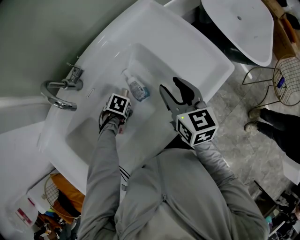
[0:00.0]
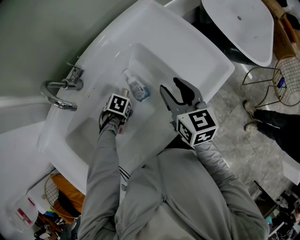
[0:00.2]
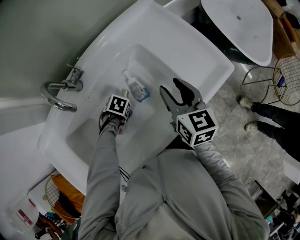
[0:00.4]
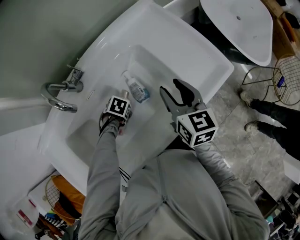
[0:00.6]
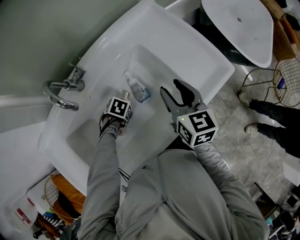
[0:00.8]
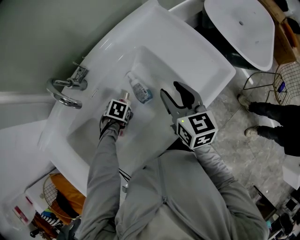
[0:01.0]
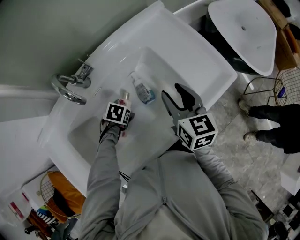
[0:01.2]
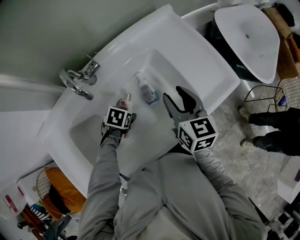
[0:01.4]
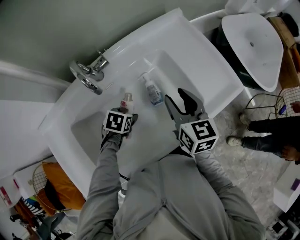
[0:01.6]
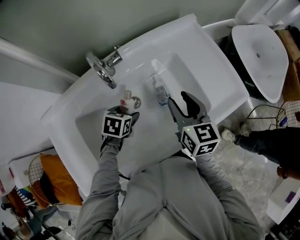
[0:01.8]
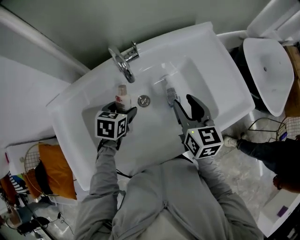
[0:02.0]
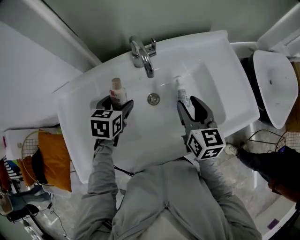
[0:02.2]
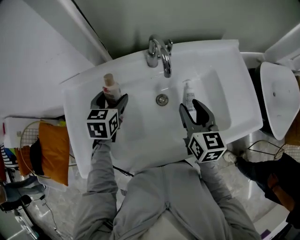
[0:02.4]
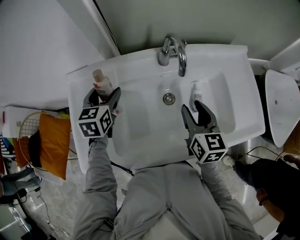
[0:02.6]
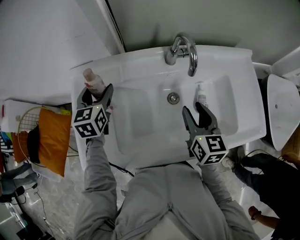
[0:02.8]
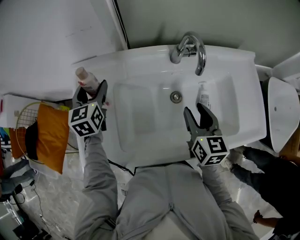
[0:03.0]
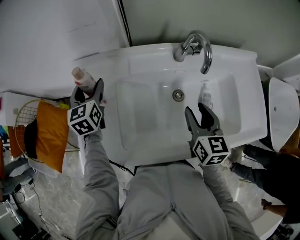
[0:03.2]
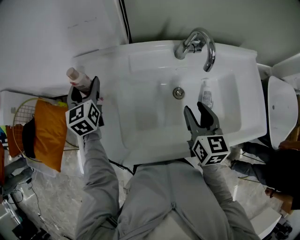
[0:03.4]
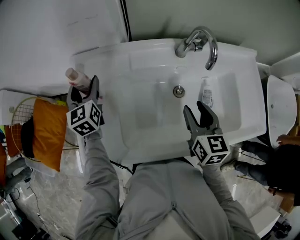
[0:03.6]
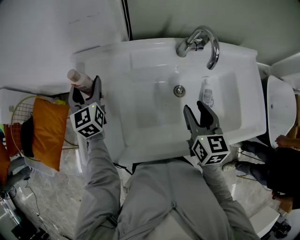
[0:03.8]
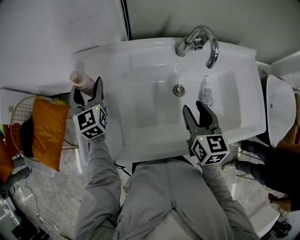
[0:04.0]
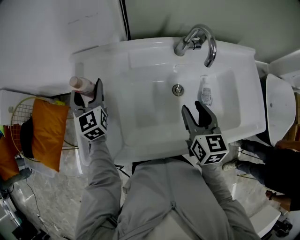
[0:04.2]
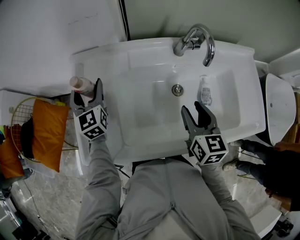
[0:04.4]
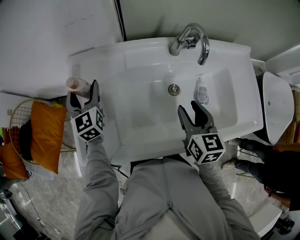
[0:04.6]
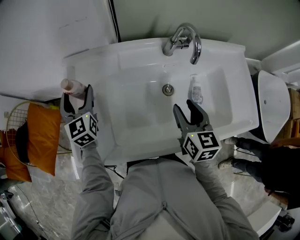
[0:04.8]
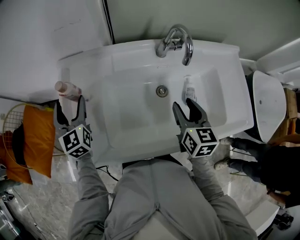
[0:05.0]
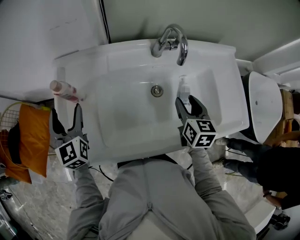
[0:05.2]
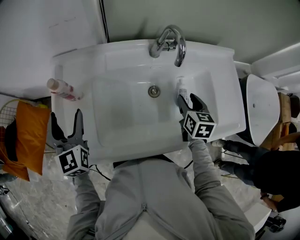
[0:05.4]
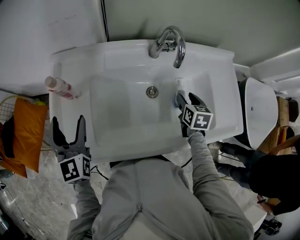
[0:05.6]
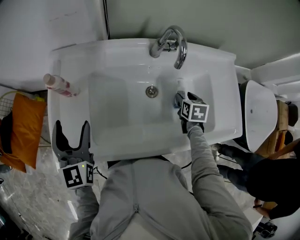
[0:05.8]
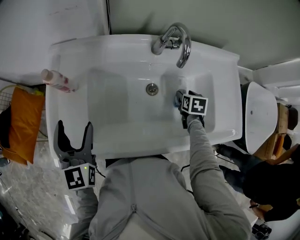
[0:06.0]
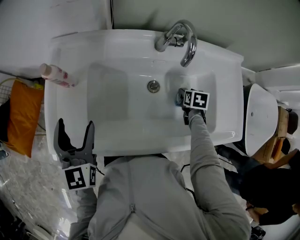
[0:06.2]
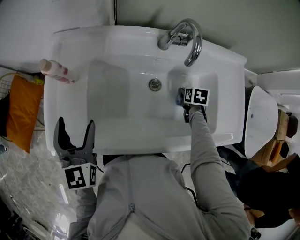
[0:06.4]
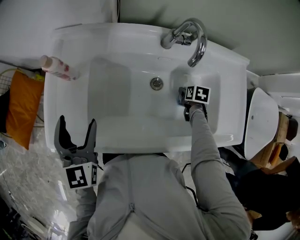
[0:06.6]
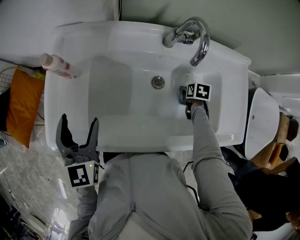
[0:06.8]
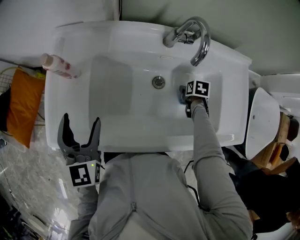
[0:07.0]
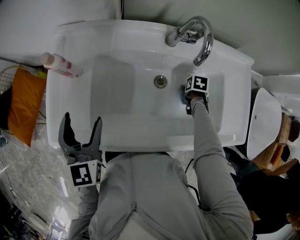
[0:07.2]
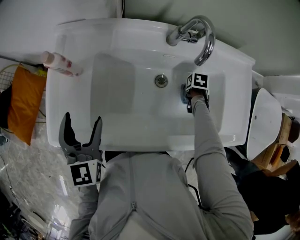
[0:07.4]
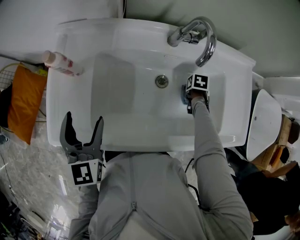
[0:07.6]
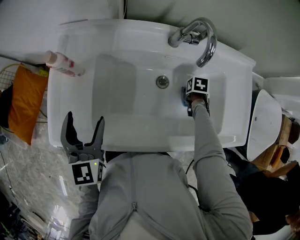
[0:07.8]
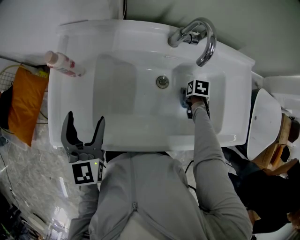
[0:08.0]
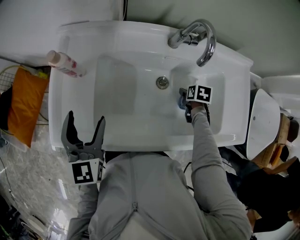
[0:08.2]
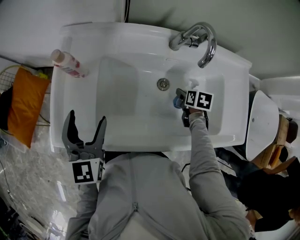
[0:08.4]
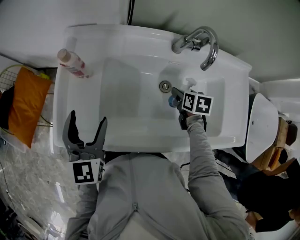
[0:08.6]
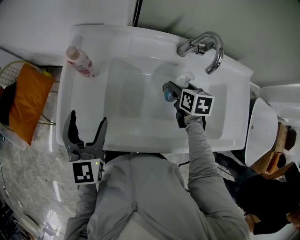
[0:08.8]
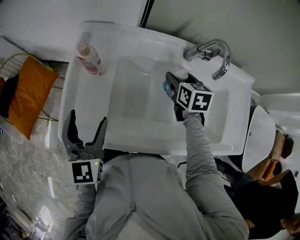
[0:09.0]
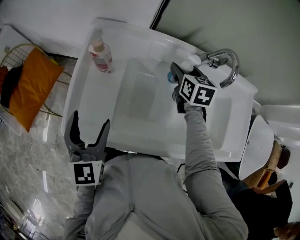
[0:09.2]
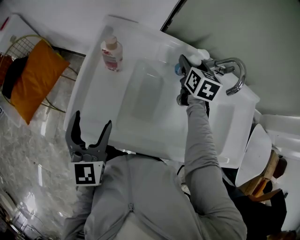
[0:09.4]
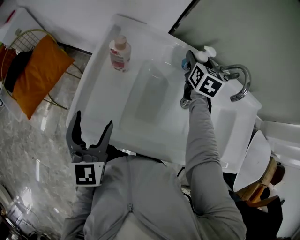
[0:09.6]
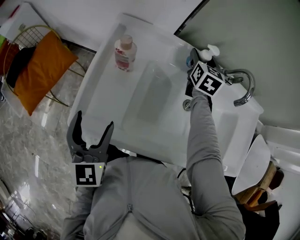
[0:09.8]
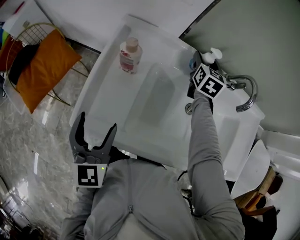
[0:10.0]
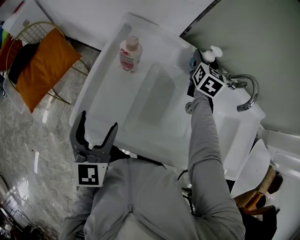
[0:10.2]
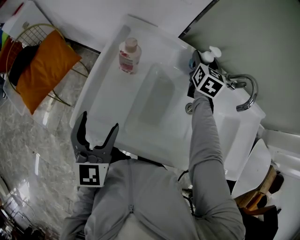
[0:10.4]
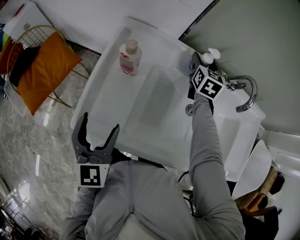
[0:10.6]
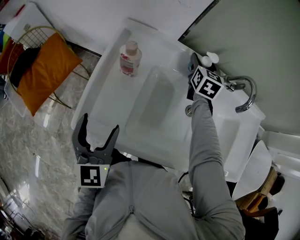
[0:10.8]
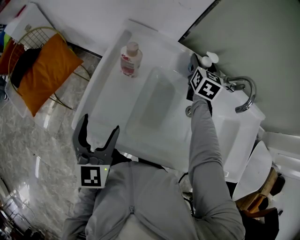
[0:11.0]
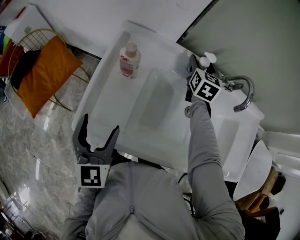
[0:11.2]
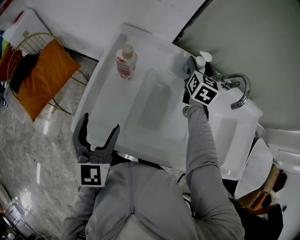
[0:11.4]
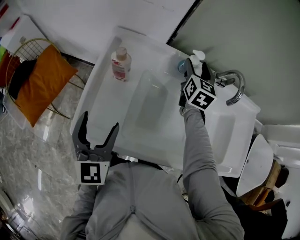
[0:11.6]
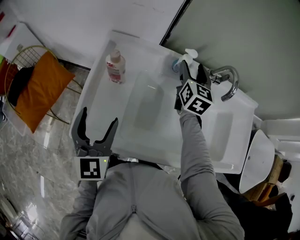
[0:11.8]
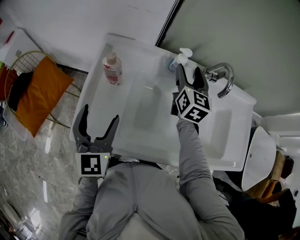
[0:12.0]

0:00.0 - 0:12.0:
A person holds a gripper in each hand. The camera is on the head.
0:00.0 - 0:01.6: The left gripper heads upward, covering about 10 cm, and rotates about 20 degrees, while the right gripper shifts by roughly 5 cm.
0:01.6 - 0:03.0: The right gripper shifts by about 20 cm, and turns by some 20 degrees; the left gripper changes place by approximately 40 cm, and tips its fingers upward by some 50 degrees.
0:03.0 - 0:04.4: The left gripper moves about 5 cm.
0:04.4 - 0:06.0: The left gripper goes about 20 cm backward and to the right, while the right gripper is displaced to the right and downward by about 25 cm, and angles its fingers downward, by some 30 degrees.
0:06.0 - 0:07.6: The right gripper travels downward by some 10 cm, and rotates about 20 degrees.
0:07.6 - 0:09.0: The right gripper shifts by roughly 30 cm, and tilts its fingers some 40 degrees upward. The left gripper ends up some 5 cm from where it was.
0:09.0 - 0:10.4: The right gripper goes roughly 15 cm forward, and rotates roughly 20 degrees.
0:10.4 - 0:12.0: The left gripper changes place by approximately 5 cm. The right gripper heads backward and upward, covering about 10 cm.

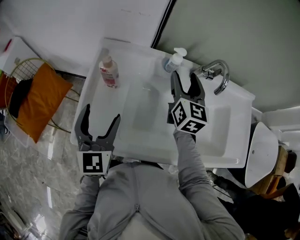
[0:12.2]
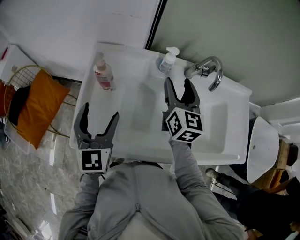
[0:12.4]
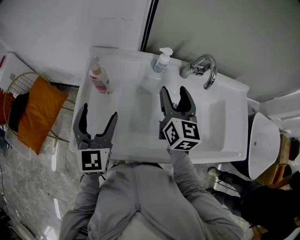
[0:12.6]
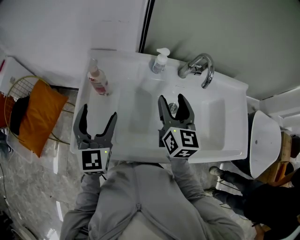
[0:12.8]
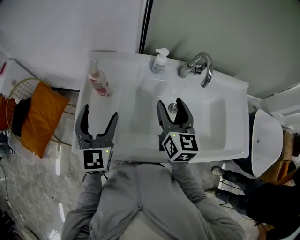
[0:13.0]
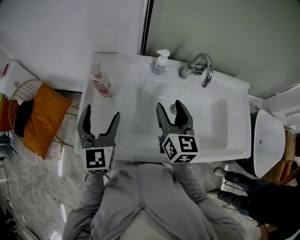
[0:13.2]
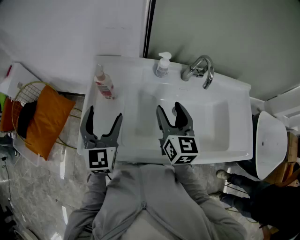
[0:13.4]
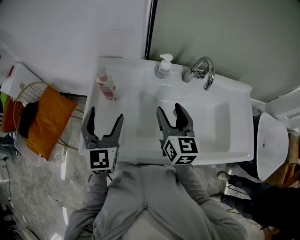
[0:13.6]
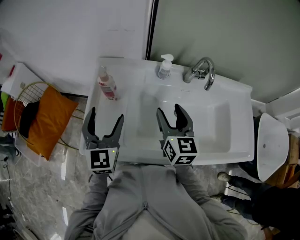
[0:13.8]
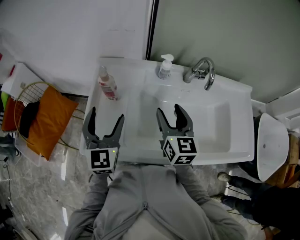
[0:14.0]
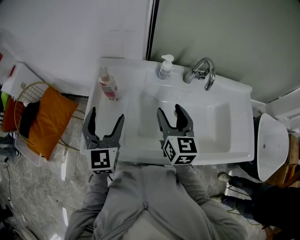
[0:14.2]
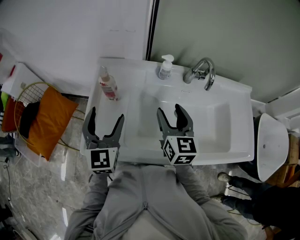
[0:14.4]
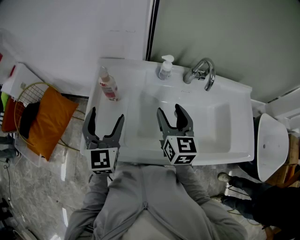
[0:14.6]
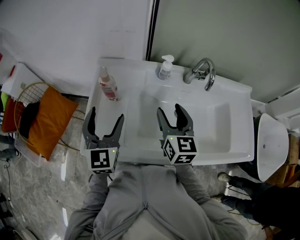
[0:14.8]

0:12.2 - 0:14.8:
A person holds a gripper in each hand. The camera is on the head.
0:12.2 - 0:13.4: The right gripper is displaced backward by approximately 10 cm.
0:13.4 - 0:14.8: Both grippers stay put.

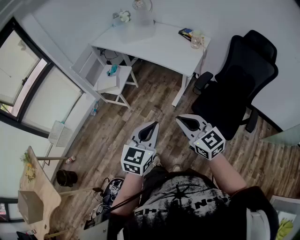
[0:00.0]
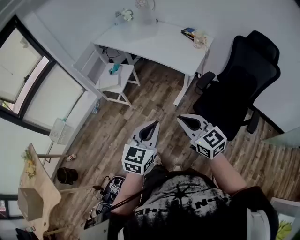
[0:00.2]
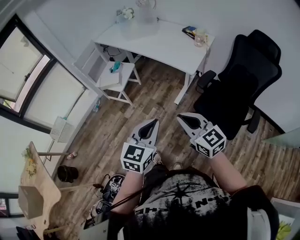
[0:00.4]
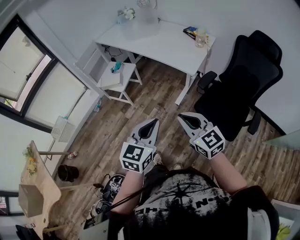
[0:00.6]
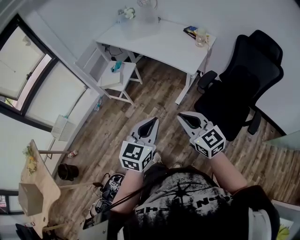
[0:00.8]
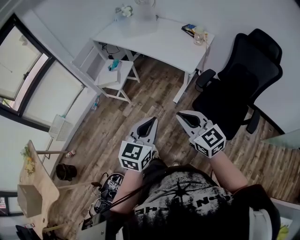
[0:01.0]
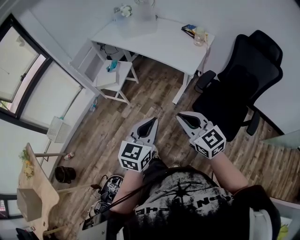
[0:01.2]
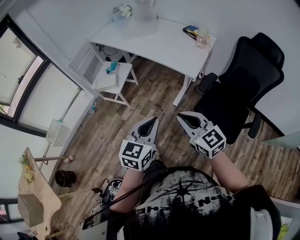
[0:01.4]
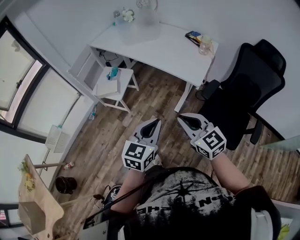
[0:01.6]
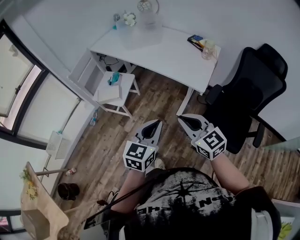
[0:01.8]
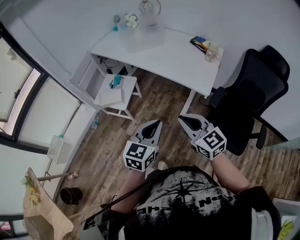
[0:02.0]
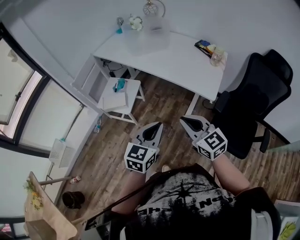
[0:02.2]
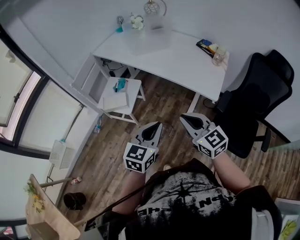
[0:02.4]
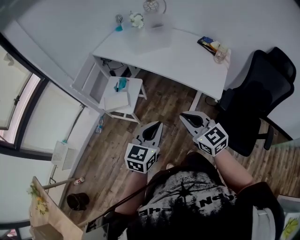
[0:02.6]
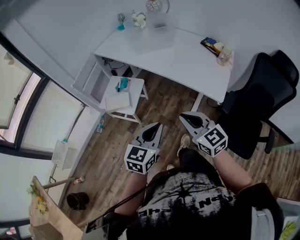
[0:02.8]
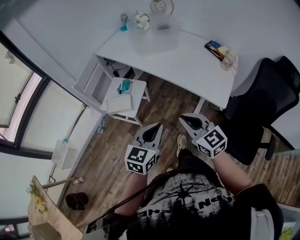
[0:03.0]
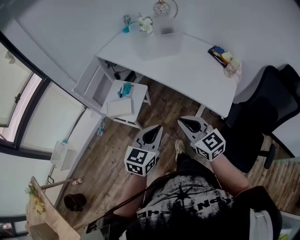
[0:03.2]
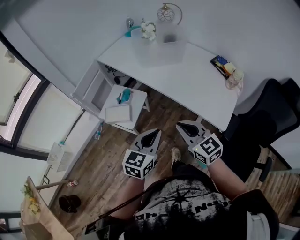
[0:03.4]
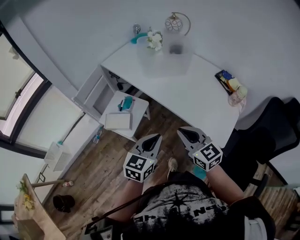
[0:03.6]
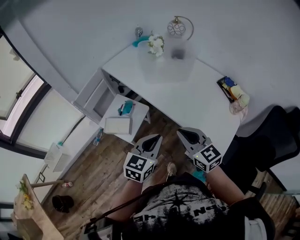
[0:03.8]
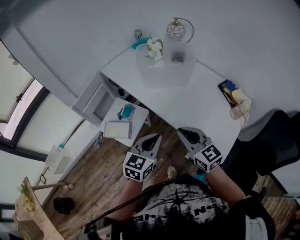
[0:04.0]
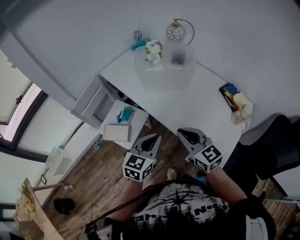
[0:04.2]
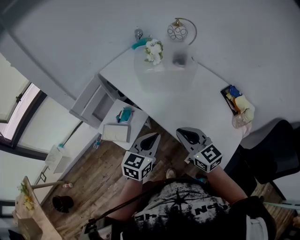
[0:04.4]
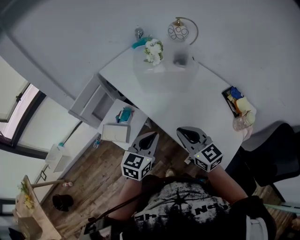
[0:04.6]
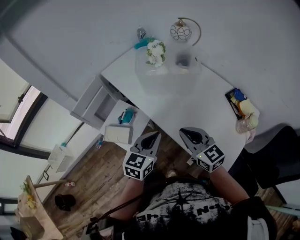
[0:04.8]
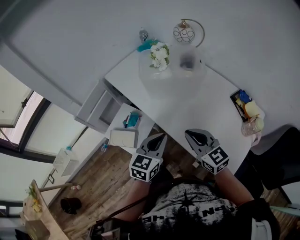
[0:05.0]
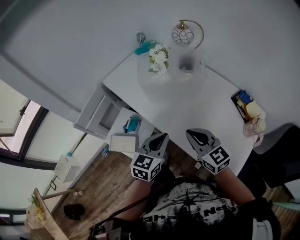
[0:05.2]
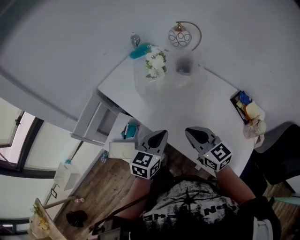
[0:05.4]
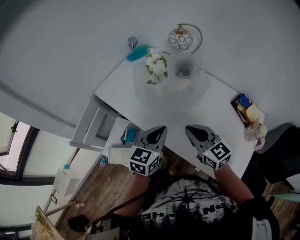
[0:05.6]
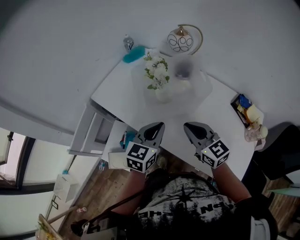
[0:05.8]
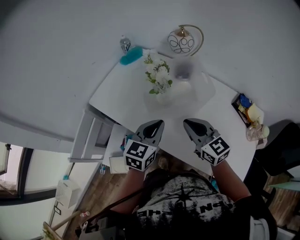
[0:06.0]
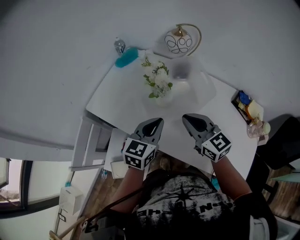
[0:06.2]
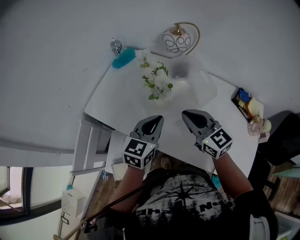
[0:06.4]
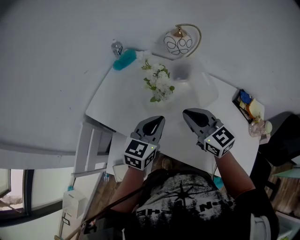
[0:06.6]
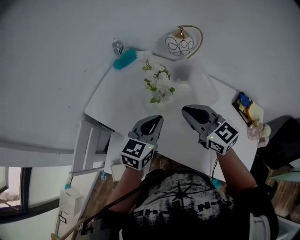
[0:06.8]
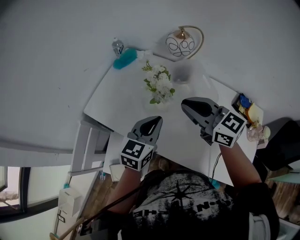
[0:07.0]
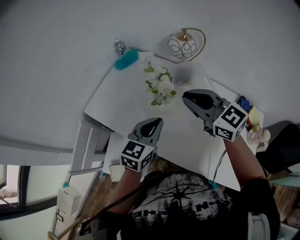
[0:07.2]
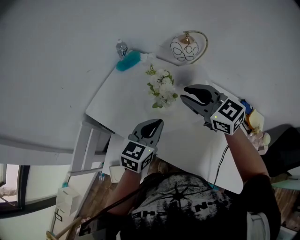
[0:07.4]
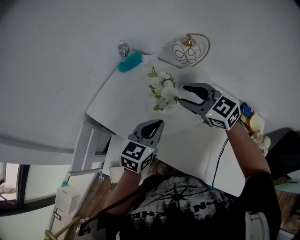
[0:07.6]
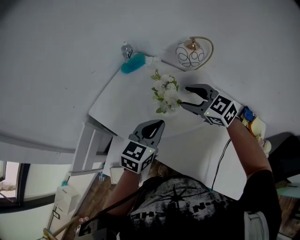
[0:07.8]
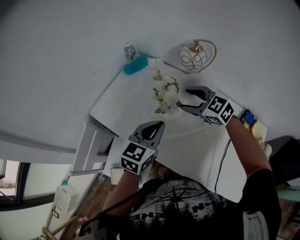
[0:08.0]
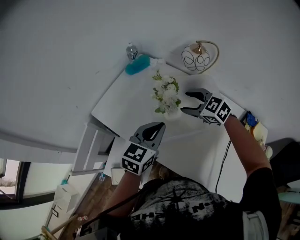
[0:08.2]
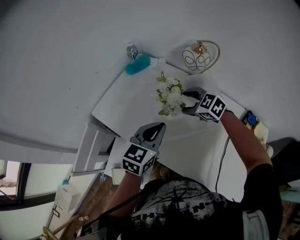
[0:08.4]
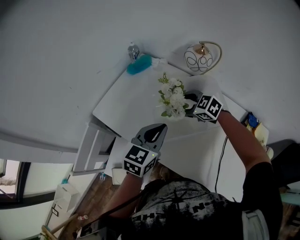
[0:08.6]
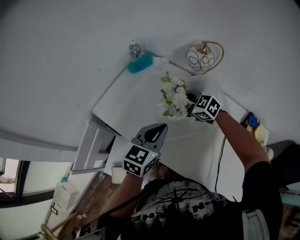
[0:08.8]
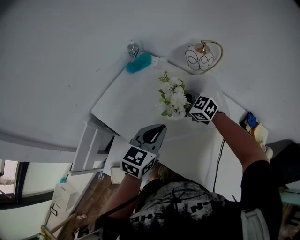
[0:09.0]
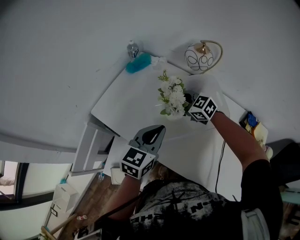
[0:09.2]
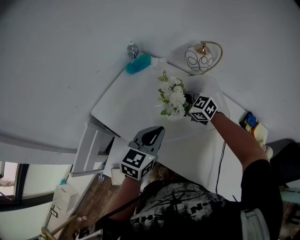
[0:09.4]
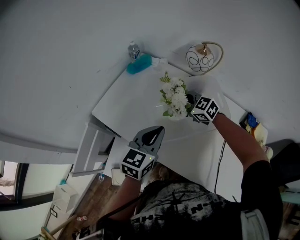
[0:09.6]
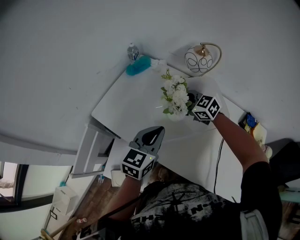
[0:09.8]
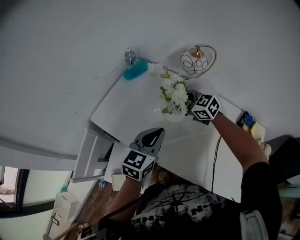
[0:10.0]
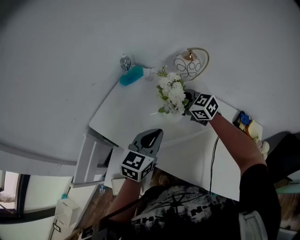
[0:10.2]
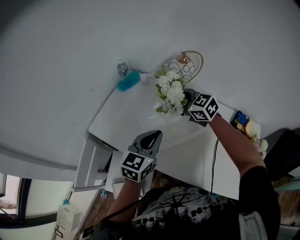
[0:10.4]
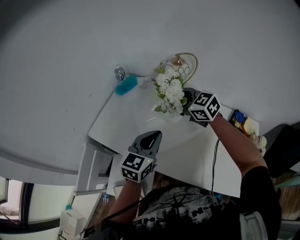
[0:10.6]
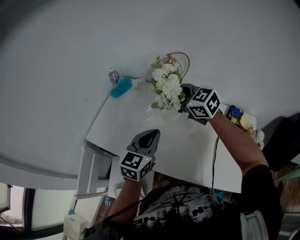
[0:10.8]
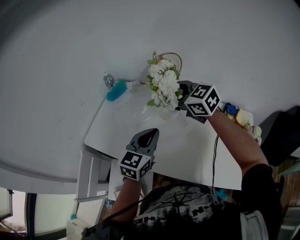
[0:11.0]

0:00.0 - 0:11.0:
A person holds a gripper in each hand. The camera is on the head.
0:00.0 - 0:01.6: The grippers both shift forward by roughly 10 cm.
0:01.6 - 0:03.2: The two grippers go some 25 cm forward and to the left.
0:03.2 - 0:04.8: The two grippers go about 25 cm forward.
0:04.8 - 0:06.2: The grippers both shift forward by roughly 25 cm.
0:06.2 - 0:07.8: The right gripper heads forward, covering roughly 15 cm, changes its angle by approximately 30 degrees, and opens, while the left gripper goes about 5 cm forward.
0:07.8 - 0:09.4: The right gripper goes about 15 cm downward and forward.
0:09.4 - 0:11.0: The left gripper heads to the right, covering about 5 cm. The right gripper shifts about 20 cm upward, and turns by roughly 20 degrees.
